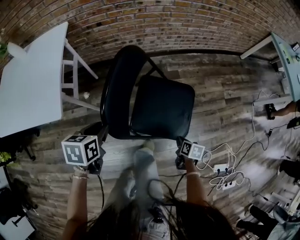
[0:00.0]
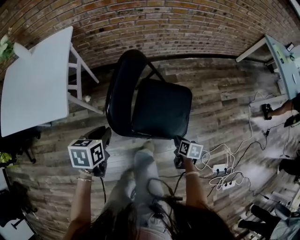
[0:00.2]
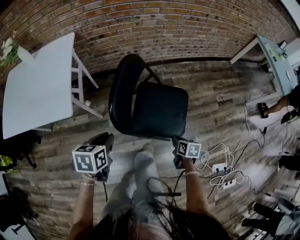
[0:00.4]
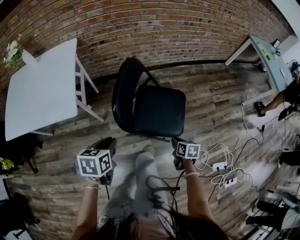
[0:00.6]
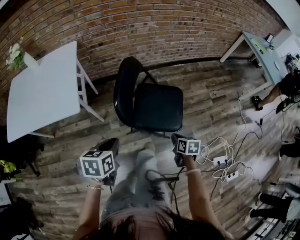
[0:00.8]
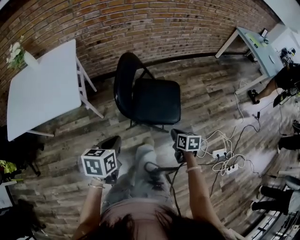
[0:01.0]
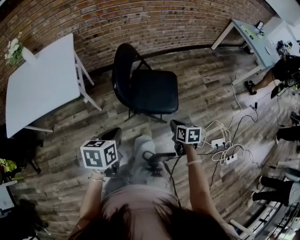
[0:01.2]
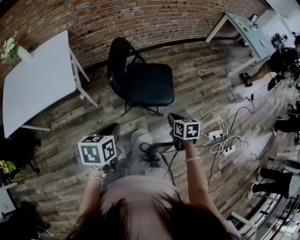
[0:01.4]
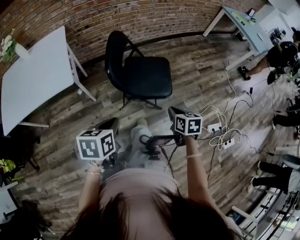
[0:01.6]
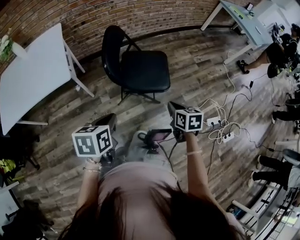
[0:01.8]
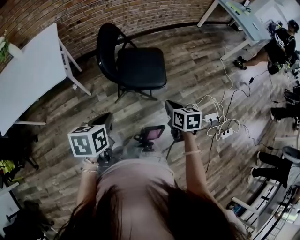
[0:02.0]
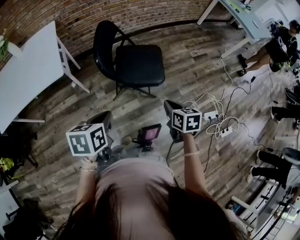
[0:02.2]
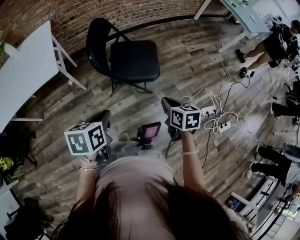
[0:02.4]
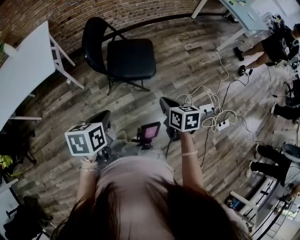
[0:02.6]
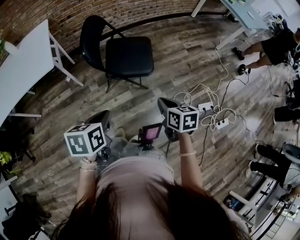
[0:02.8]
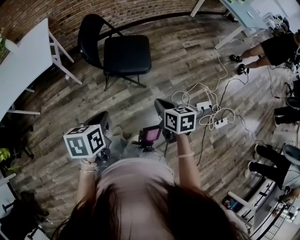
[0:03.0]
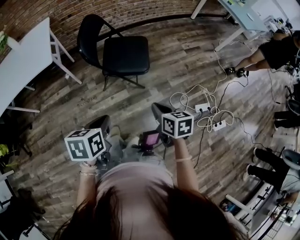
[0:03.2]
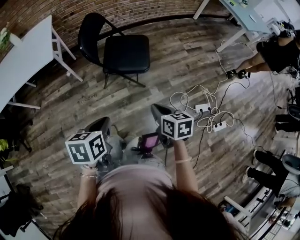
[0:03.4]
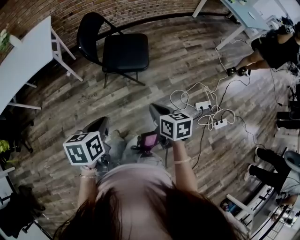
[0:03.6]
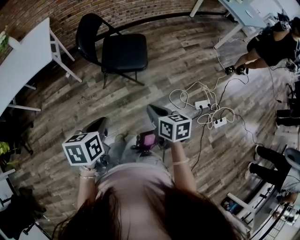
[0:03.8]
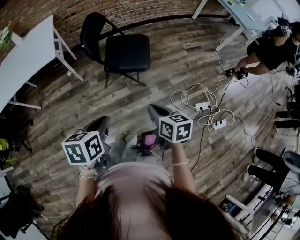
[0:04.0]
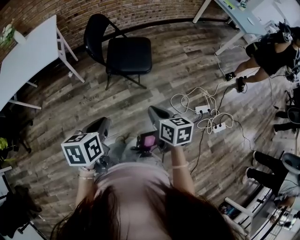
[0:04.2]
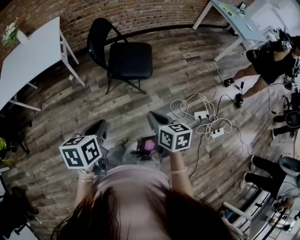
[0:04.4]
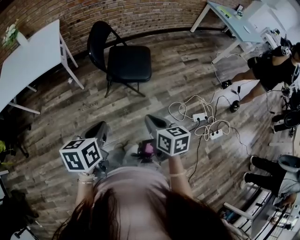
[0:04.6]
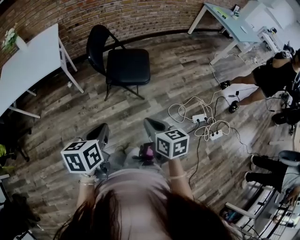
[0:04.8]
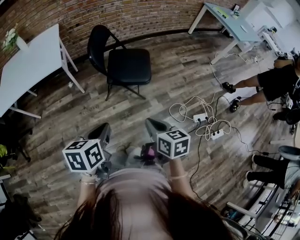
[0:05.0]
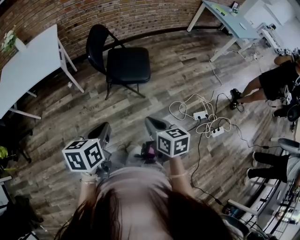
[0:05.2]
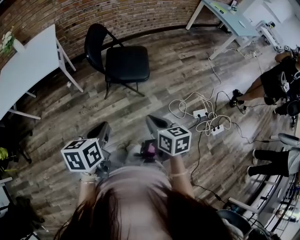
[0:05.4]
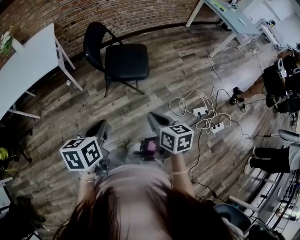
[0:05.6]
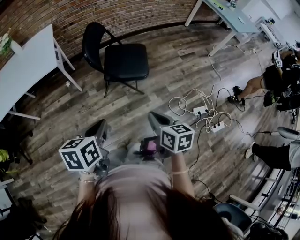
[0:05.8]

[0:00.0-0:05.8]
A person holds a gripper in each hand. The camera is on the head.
0:00.0 to 0:01.4: The left gripper heads backward and upward, covering roughly 25 cm, and closes up. Meanwhile the right gripper is displaced upward and backward by some 25 cm, and swivels approximately 20 degrees.
0:01.4 to 0:02.8: The left gripper heads to the right and backward, covering roughly 15 cm; the right gripper travels backward, to the right and upward by about 15 cm.
0:02.8 to 0:04.4: The two grippers go approximately 10 cm backward.
0:04.4 to 0:05.8: There are only small adjustments of the grippers.

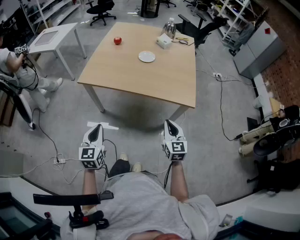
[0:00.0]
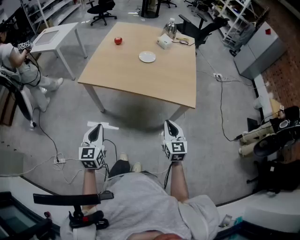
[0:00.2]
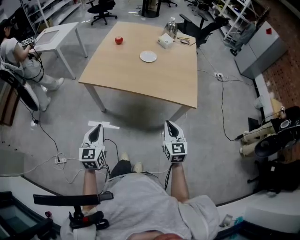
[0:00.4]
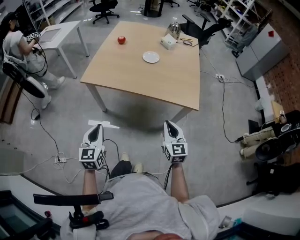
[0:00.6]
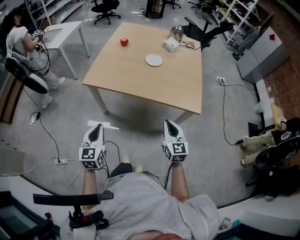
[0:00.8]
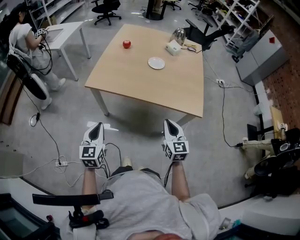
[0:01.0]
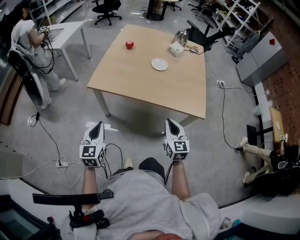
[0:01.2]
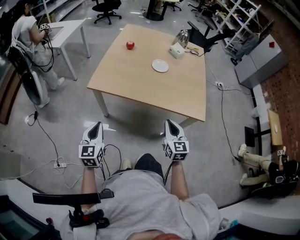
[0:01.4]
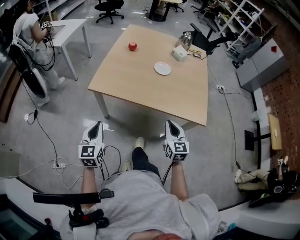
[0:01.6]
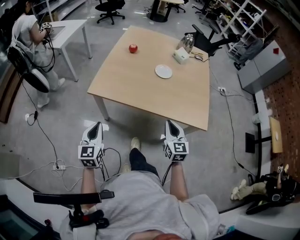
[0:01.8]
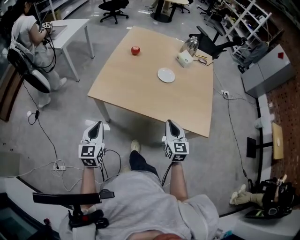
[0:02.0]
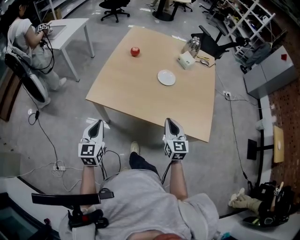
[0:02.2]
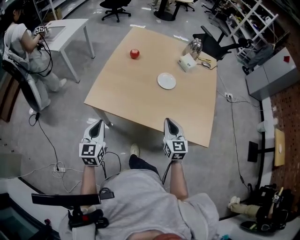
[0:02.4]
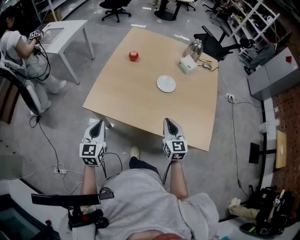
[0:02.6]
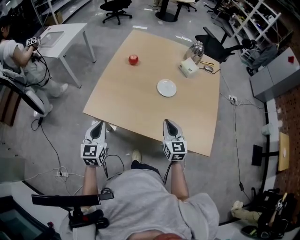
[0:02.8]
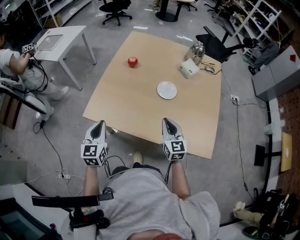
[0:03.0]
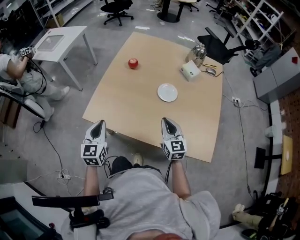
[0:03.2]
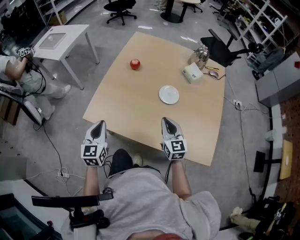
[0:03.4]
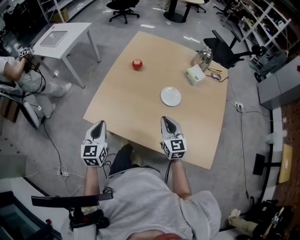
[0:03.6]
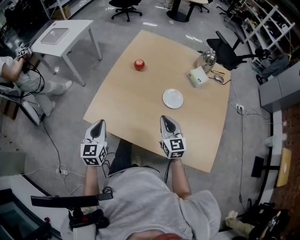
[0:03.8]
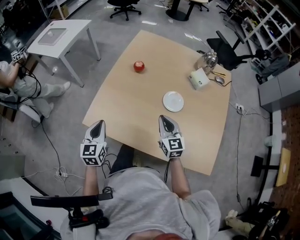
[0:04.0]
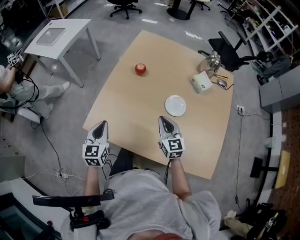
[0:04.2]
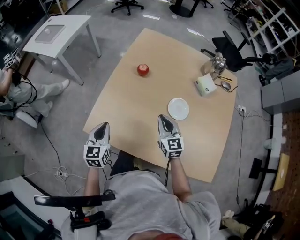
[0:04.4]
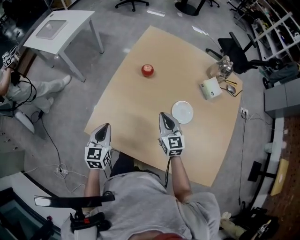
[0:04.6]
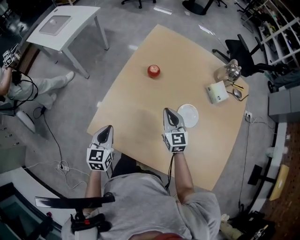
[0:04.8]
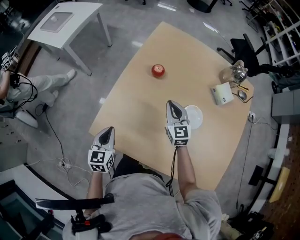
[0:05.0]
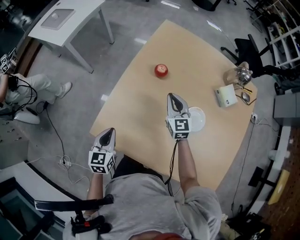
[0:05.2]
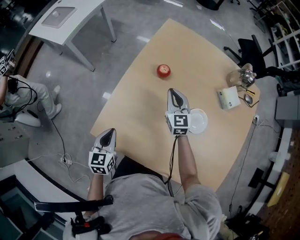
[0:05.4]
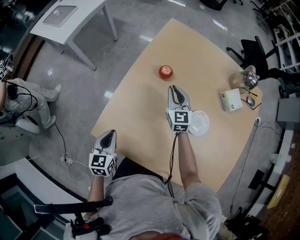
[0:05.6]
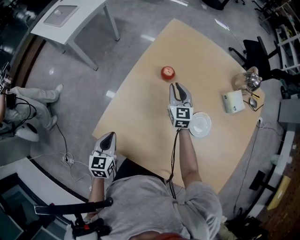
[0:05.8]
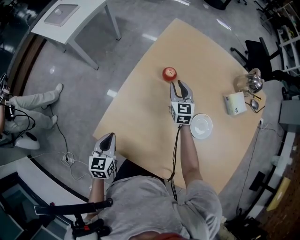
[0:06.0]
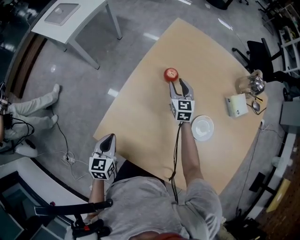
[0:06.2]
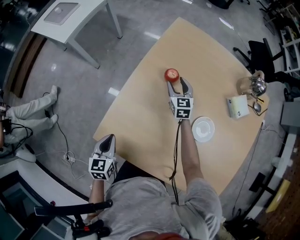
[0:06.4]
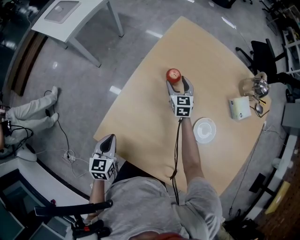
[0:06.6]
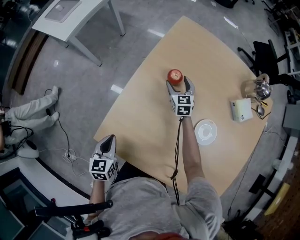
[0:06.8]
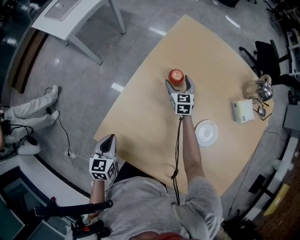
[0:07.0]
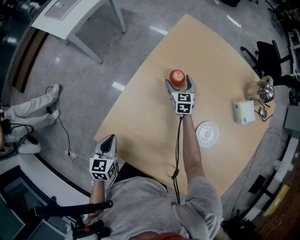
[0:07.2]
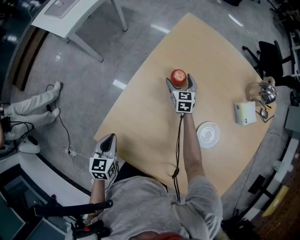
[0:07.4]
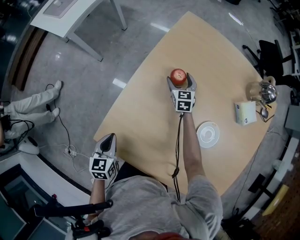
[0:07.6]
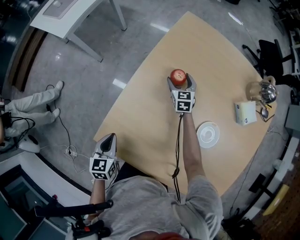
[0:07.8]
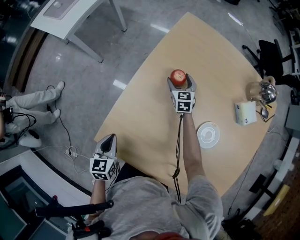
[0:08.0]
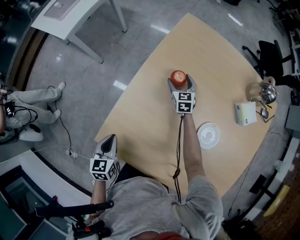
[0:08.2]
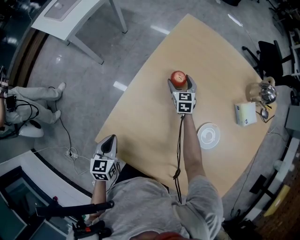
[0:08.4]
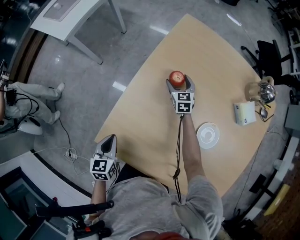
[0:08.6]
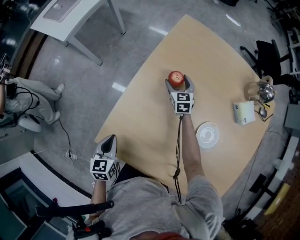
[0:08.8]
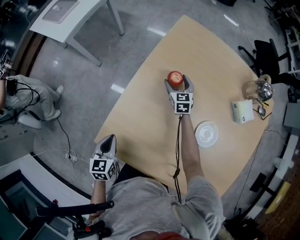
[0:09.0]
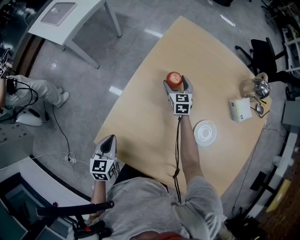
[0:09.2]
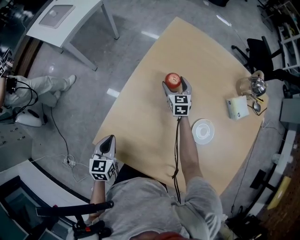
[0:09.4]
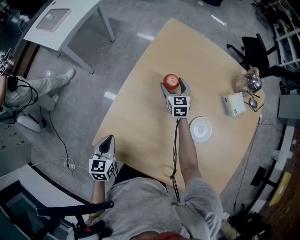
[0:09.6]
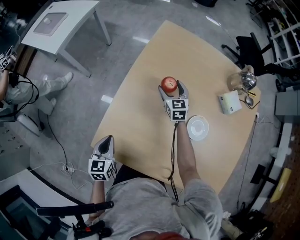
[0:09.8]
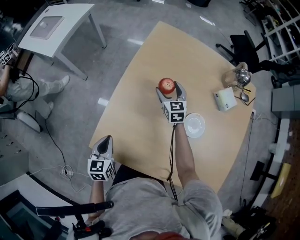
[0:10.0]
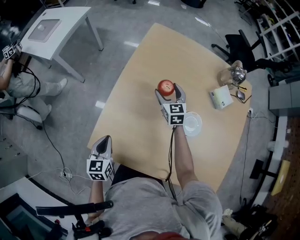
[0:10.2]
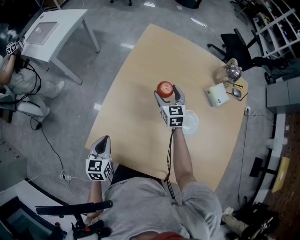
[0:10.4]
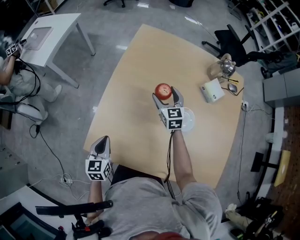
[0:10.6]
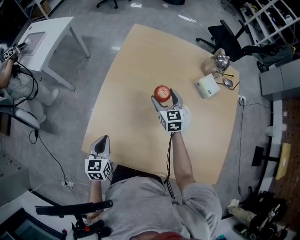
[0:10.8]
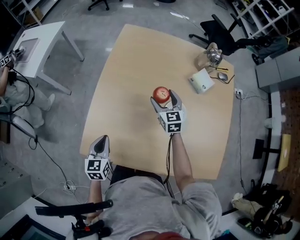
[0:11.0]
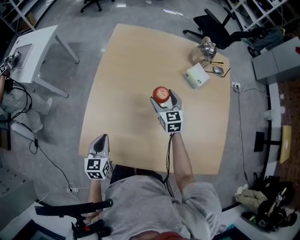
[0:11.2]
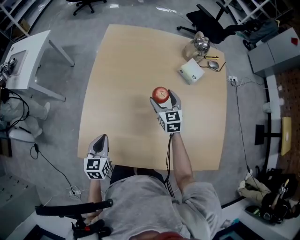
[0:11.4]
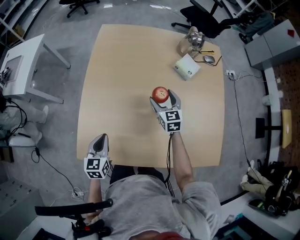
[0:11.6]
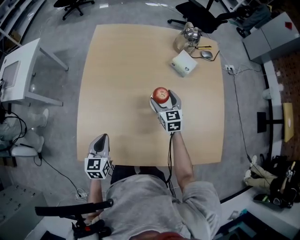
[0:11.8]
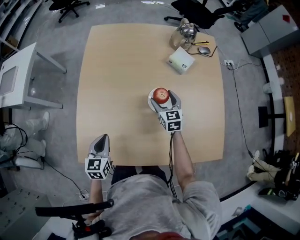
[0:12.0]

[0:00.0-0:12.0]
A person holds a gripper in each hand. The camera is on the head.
0:00.0 to 0:01.6: The right gripper moves forward and to the left, about 15 cm. Meanwhile the left gripper is displaced to the left and forward by approximately 15 cm.
0:01.6 to 0:03.0: Both grippers travel together forward, about 25 cm.
0:03.0 to 0:04.4: Both grippers travel together forward, about 15 cm.
0:04.4 to 0:06.0: The right gripper is displaced forward by about 25 cm; the left gripper goes roughly 10 cm downward and to the left.
0:06.0 to 0:07.6: The right gripper travels downward and forward by some 15 cm, and opens.
0:07.6 to 0:09.0: There are only small adjustments of the grippers.
0:09.0 to 0:10.4: The right gripper is displaced upward, backward and to the right by about 15 cm.
0:10.4 to 0:12.0: The right gripper heads to the right and backward, covering some 20 cm; the left gripper goes some 10 cm to the right, and changes its angle by roughly 20 degrees.

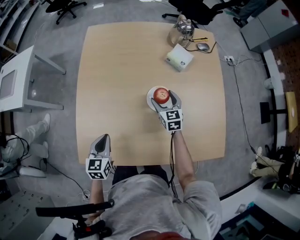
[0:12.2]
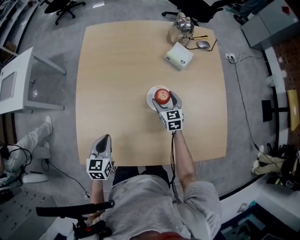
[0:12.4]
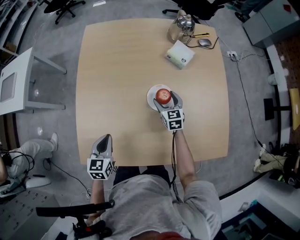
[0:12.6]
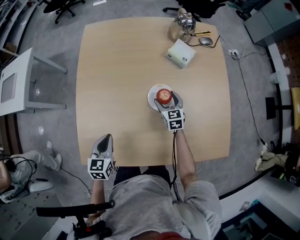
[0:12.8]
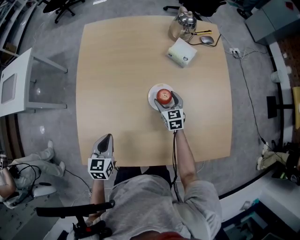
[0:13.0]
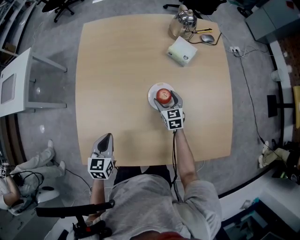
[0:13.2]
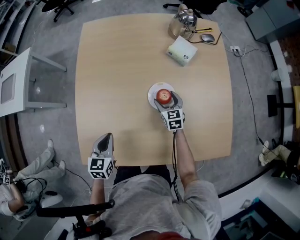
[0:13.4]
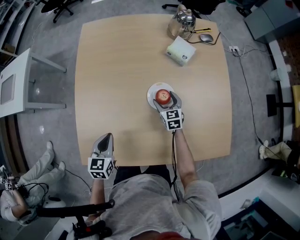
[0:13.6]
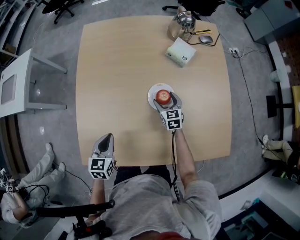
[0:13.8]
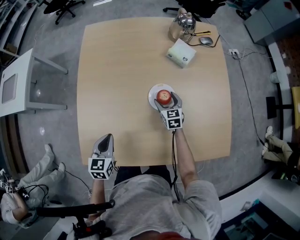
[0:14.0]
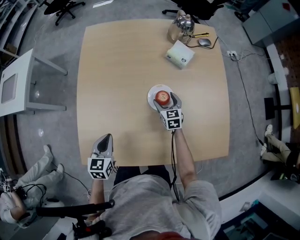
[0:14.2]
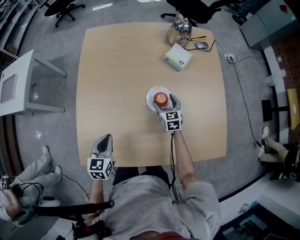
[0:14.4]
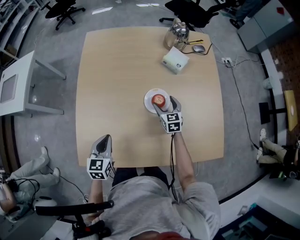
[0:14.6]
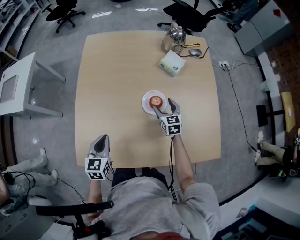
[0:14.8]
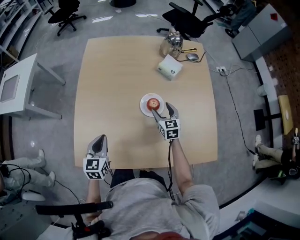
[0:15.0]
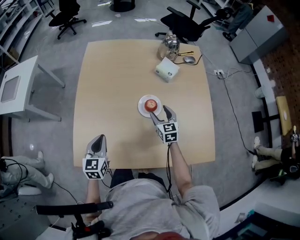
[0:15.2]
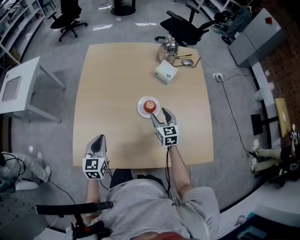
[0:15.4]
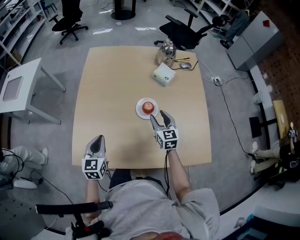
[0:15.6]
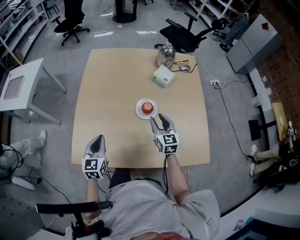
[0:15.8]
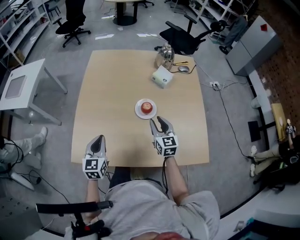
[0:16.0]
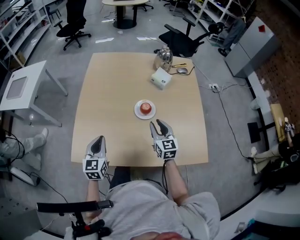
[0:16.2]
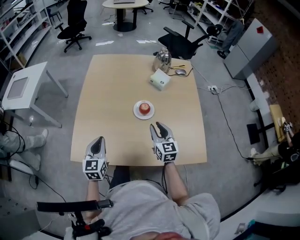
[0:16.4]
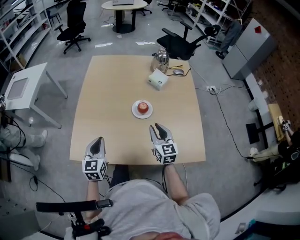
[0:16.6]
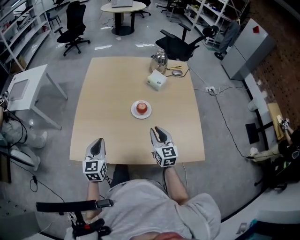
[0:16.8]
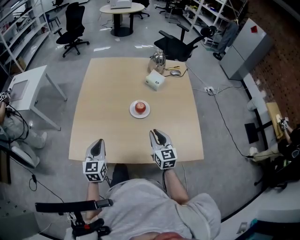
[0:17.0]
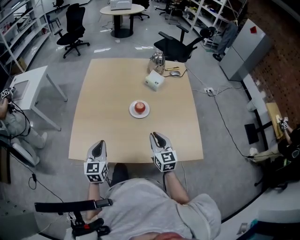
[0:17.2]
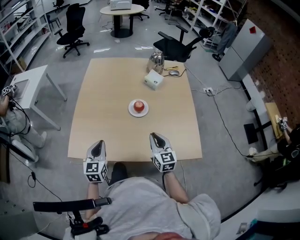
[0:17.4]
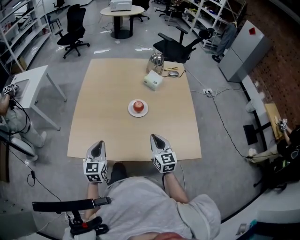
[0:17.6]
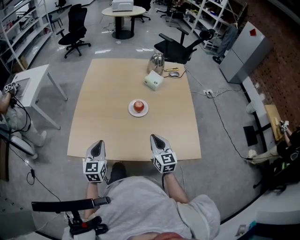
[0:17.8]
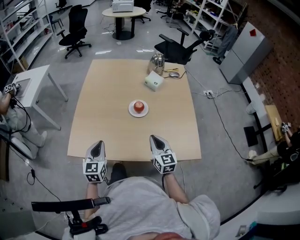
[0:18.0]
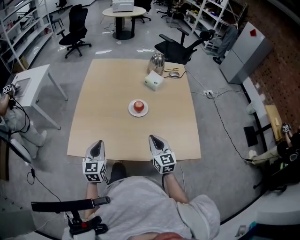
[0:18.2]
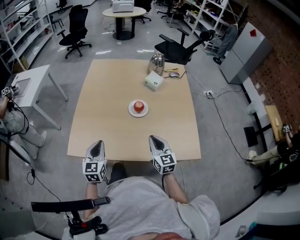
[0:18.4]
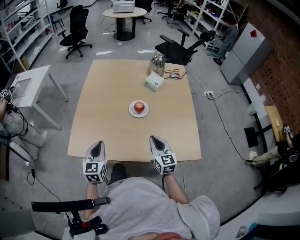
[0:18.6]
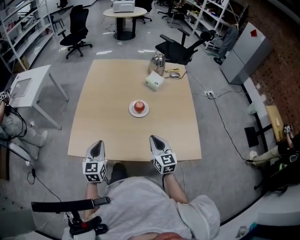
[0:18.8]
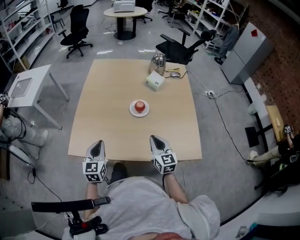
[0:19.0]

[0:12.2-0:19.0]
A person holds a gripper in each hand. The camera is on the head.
0:12.2 to 0:13.6: The right gripper heads downward, covering approximately 5 cm.
0:13.6 to 0:15.0: The right gripper shifts roughly 5 cm upward.
0:15.0 to 0:16.2: The left gripper shifts some 5 cm backward, while the right gripper moves backward and upward, roughly 15 cm, and closes up.
0:16.2 to 0:17.6: The grippers both shift backward by about 10 cm.
0:17.6 to 0:19.0: Both grippers stay put.
